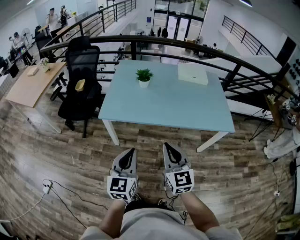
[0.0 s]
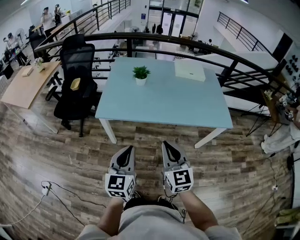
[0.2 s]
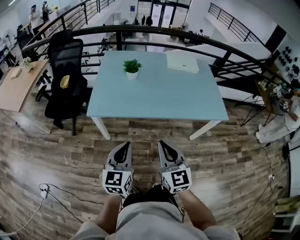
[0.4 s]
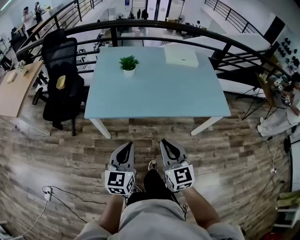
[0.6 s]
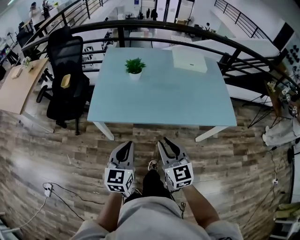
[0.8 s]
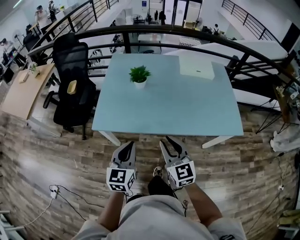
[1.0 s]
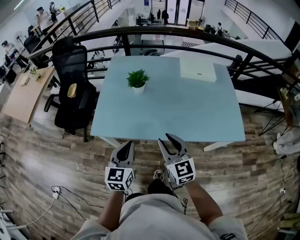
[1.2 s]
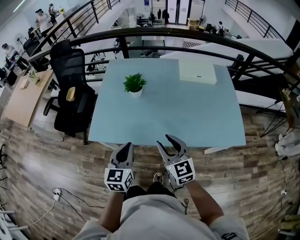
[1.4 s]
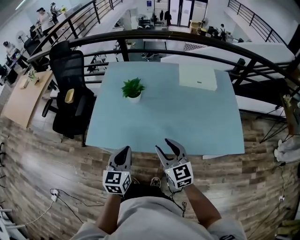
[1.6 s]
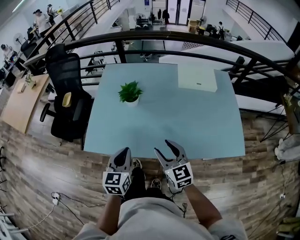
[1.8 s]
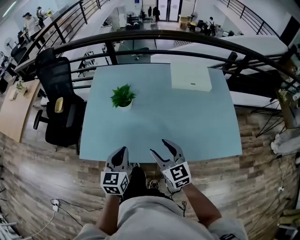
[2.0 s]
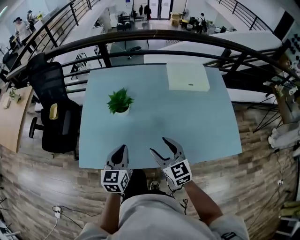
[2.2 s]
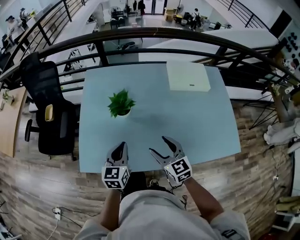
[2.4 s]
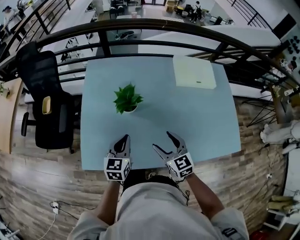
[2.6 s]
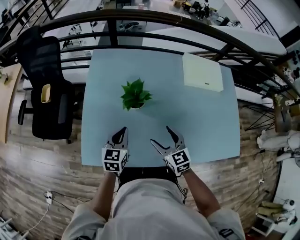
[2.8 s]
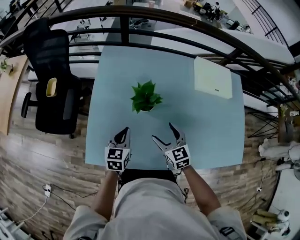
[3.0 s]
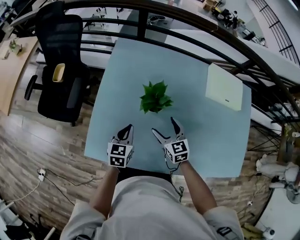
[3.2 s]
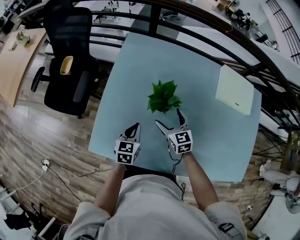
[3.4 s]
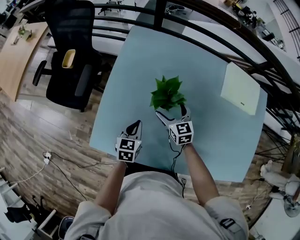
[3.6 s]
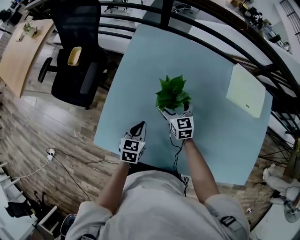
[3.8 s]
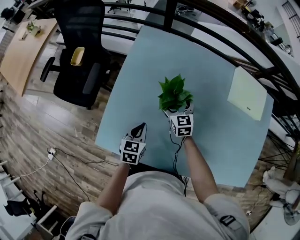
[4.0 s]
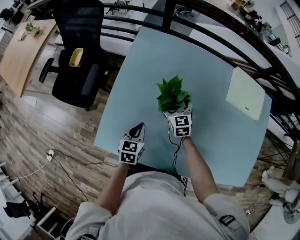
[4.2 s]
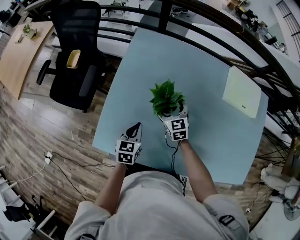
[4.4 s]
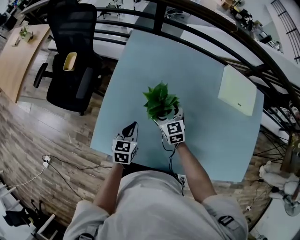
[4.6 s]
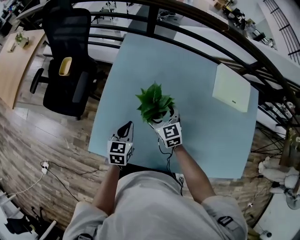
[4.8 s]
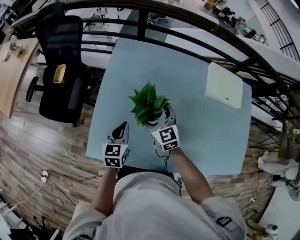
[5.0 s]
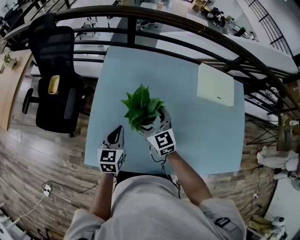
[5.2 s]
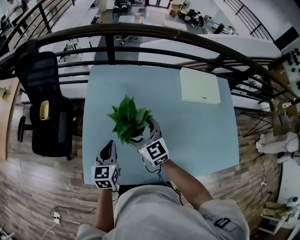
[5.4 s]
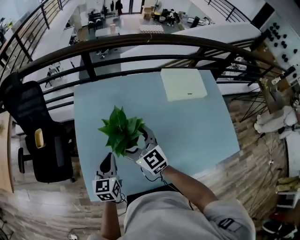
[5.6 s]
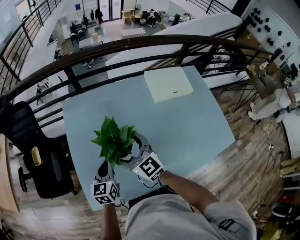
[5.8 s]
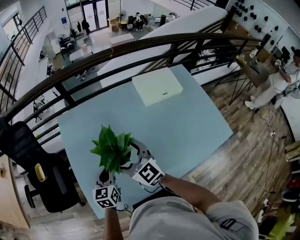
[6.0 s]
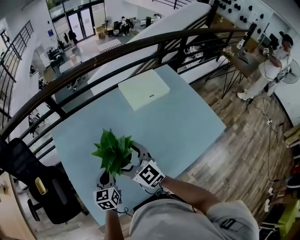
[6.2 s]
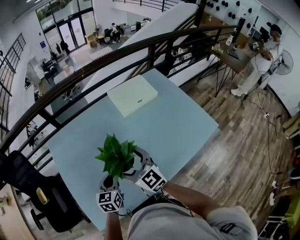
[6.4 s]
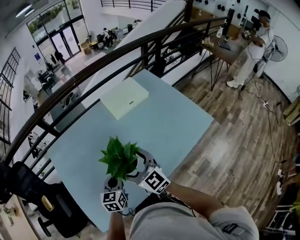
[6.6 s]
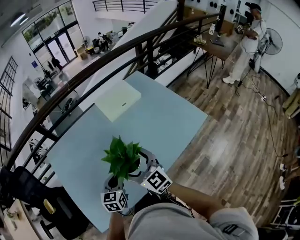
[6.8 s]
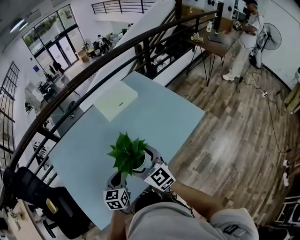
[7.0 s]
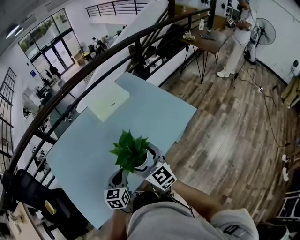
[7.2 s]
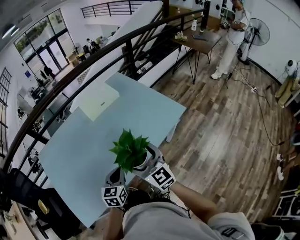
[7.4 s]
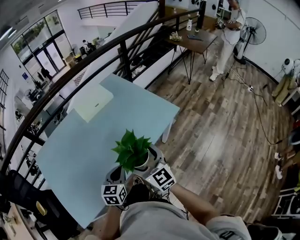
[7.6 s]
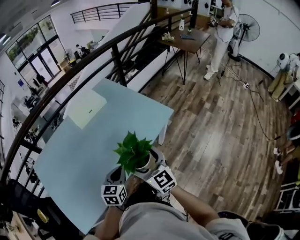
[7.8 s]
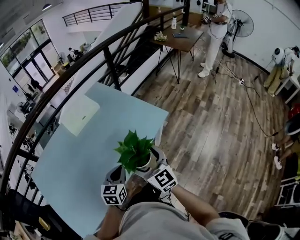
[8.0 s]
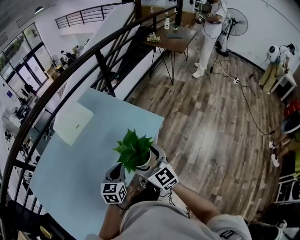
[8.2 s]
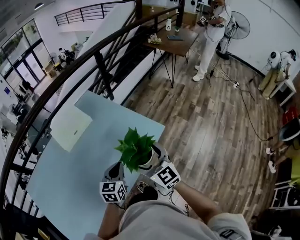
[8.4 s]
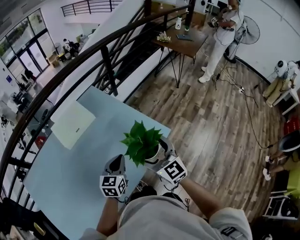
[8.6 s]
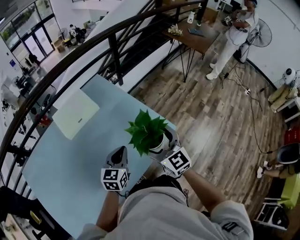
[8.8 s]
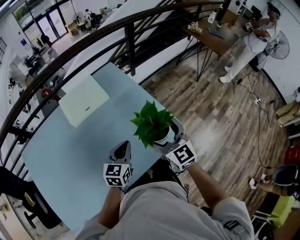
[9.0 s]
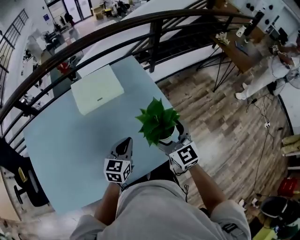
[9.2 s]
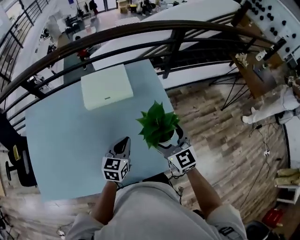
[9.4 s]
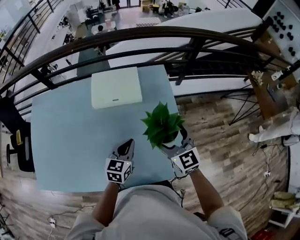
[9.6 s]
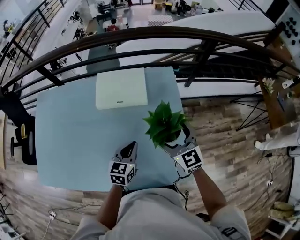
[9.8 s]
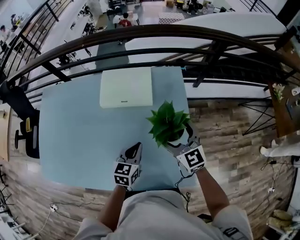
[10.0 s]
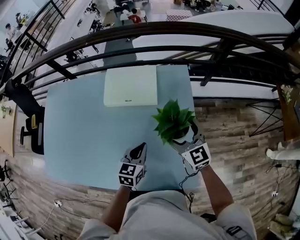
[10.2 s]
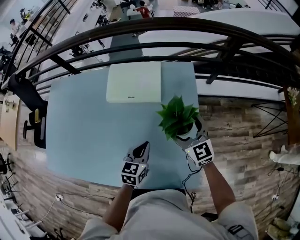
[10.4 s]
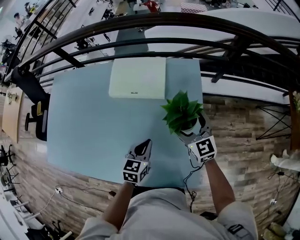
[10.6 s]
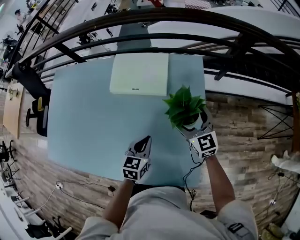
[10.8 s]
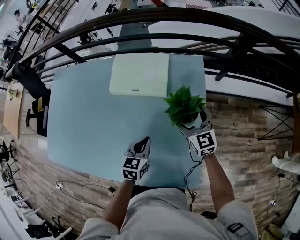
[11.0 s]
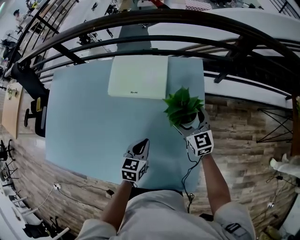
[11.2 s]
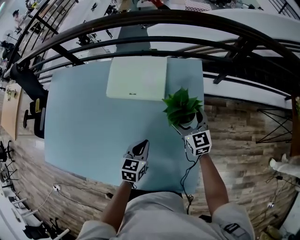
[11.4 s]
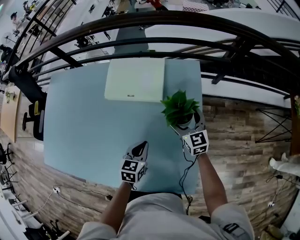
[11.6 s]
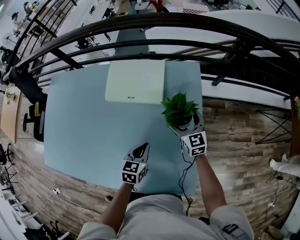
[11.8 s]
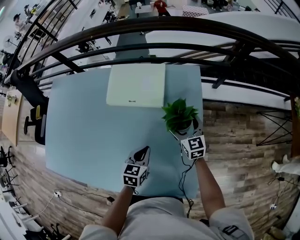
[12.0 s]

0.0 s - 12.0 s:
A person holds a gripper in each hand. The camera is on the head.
0.0 s - 1.6 s: The two grippers go approximately 30 cm forward.
1.6 s - 3.0 s: The grippers both shift forward and downward by approximately 30 cm. The right gripper opens.
3.0 s - 4.4 s: The right gripper travels forward, downward and to the left by about 20 cm; the left gripper heads downward, covering about 5 cm.
4.4 s - 6.0 s: The left gripper goes about 15 cm upward and to the right, and rotates some 20 degrees. Meanwhile the right gripper goes some 25 cm upward, and rotates some 30 degrees.
6.0 s - 7.6 s: Both grippers are carried roughly 40 cm. The left gripper swivels some 40 degrees, while the right gripper rotates about 40 degrees.
7.6 s - 9.0 s: The right gripper shifts about 35 cm forward and to the right, while the left gripper goes roughly 30 cm forward.
9.0 s - 10.4 s: The right gripper moves some 30 cm, and changes its angle by some 40 degrees, while the left gripper moves about 15 cm, and rotates approximately 40 degrees.
10.4 s - 12.0 s: The right gripper travels downward and forward by some 15 cm. Meanwhile the left gripper is displaced downward by some 5 cm.

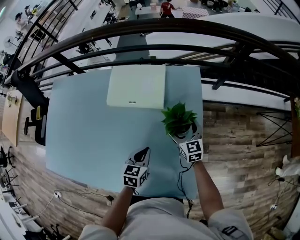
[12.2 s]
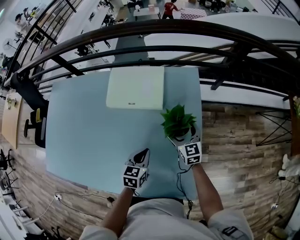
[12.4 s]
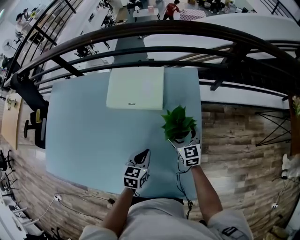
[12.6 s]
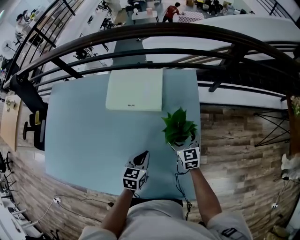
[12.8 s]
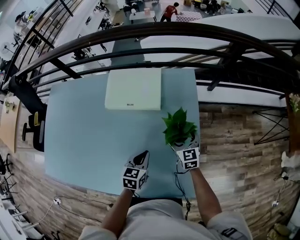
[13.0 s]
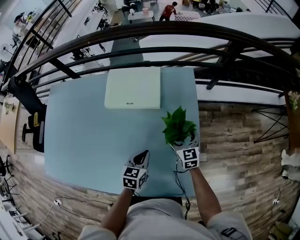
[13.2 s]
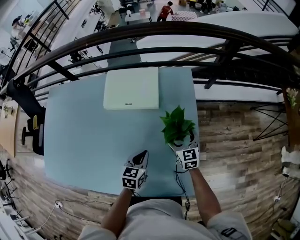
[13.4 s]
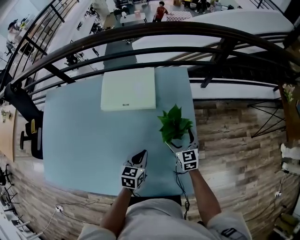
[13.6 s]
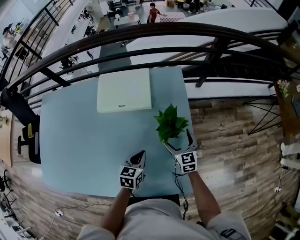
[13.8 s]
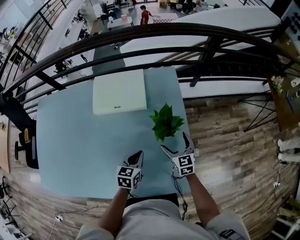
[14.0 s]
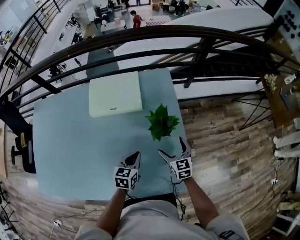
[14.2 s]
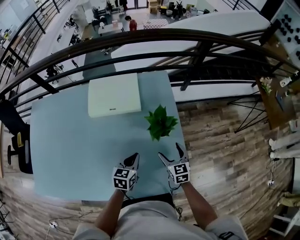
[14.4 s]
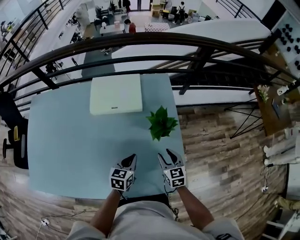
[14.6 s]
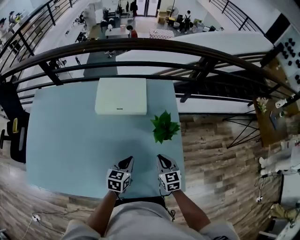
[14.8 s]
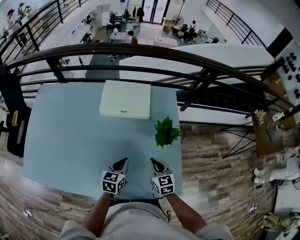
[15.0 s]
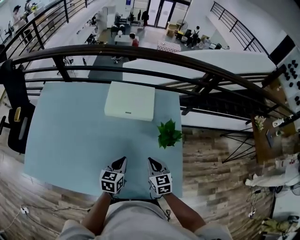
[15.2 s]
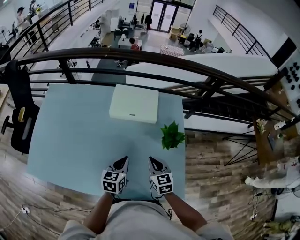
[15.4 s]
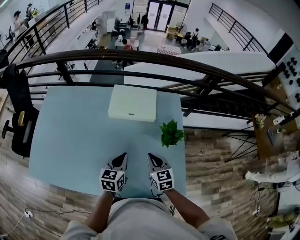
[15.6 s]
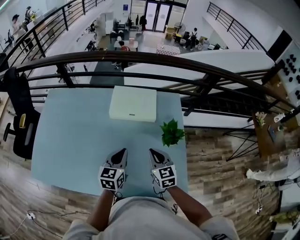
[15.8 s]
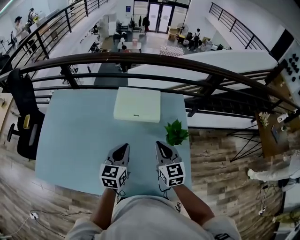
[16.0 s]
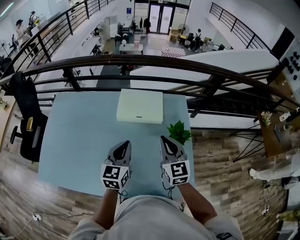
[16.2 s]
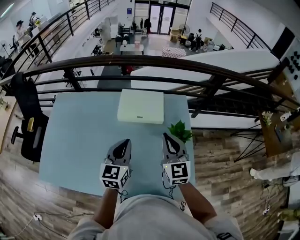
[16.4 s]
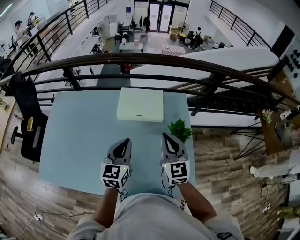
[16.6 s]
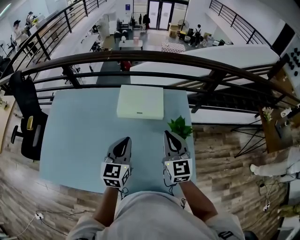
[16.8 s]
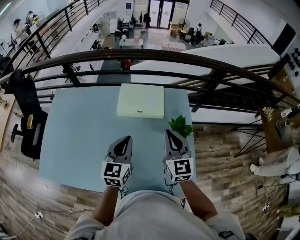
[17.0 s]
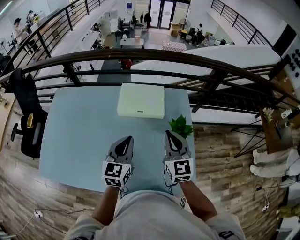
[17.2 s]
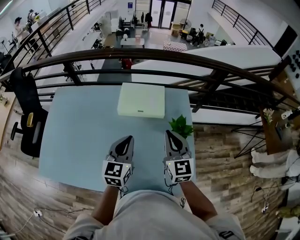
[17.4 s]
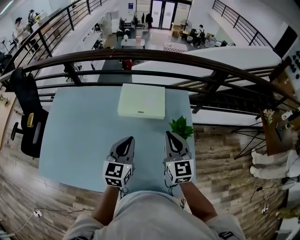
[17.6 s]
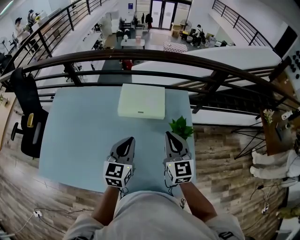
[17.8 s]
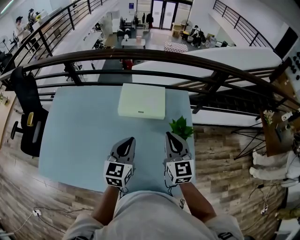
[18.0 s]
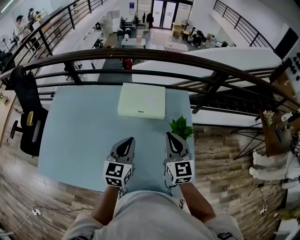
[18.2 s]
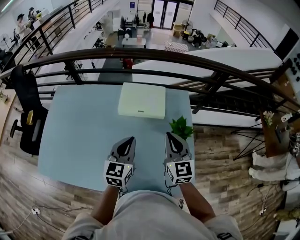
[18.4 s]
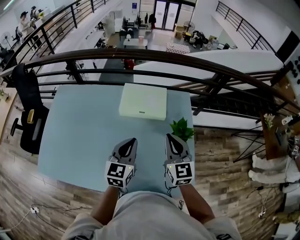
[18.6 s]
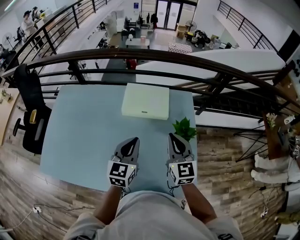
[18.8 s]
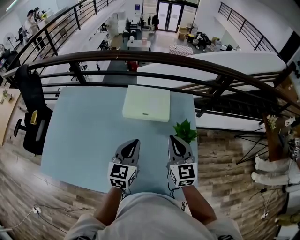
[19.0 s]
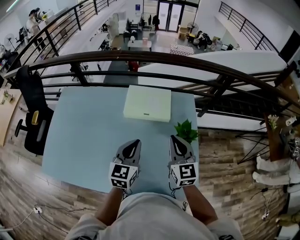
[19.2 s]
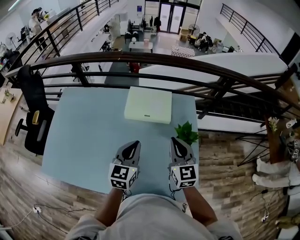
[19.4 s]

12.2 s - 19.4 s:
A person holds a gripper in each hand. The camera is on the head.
12.2 s - 13.6 s: The right gripper travels backward by roughly 5 cm.
13.6 s - 15.0 s: The right gripper heads backward and to the left, covering approximately 15 cm, and closes its fingers. Meanwhile the left gripper goes approximately 5 cm to the left.
15.0 s - 16.6 s: Both grippers travel together upward, about 20 cm. The left gripper swivels roughly 30 degrees. Meanwhile the right gripper swivels approximately 30 degrees.
16.6 s - 18.0 s: There are only small adjustments of the grippers.
18.0 s - 19.4 s: Both grippers stay about where they are.

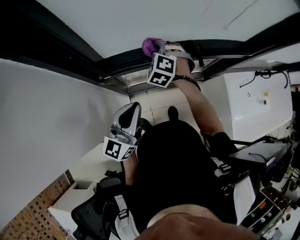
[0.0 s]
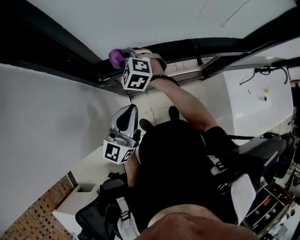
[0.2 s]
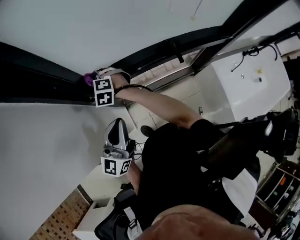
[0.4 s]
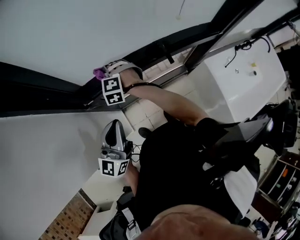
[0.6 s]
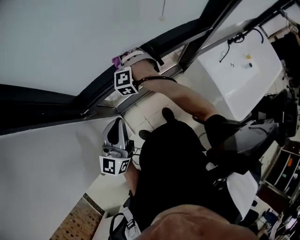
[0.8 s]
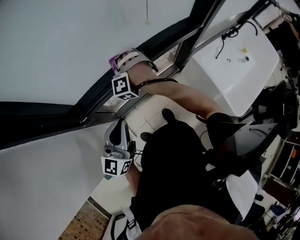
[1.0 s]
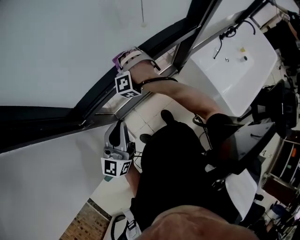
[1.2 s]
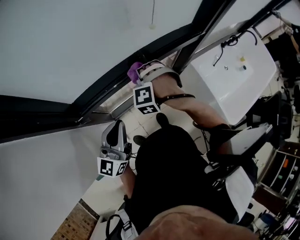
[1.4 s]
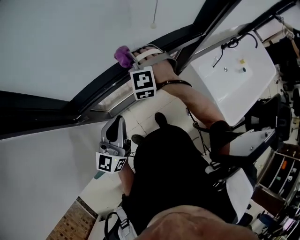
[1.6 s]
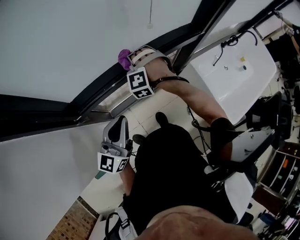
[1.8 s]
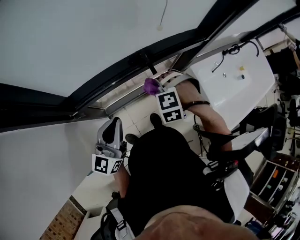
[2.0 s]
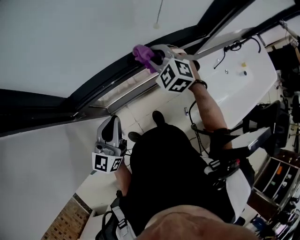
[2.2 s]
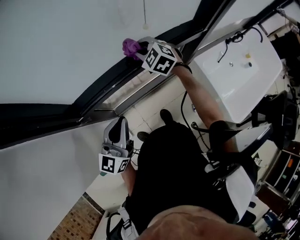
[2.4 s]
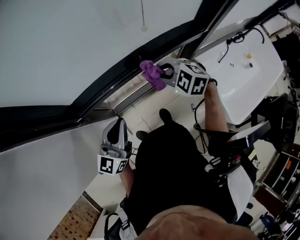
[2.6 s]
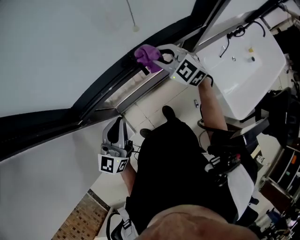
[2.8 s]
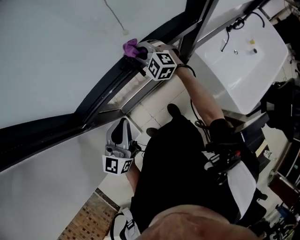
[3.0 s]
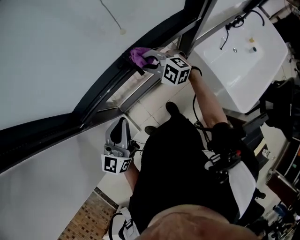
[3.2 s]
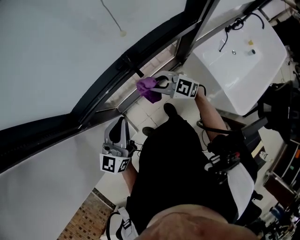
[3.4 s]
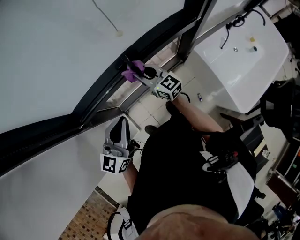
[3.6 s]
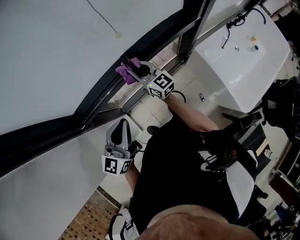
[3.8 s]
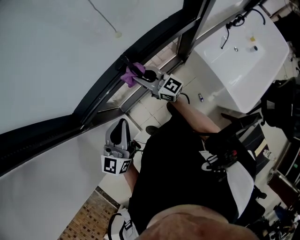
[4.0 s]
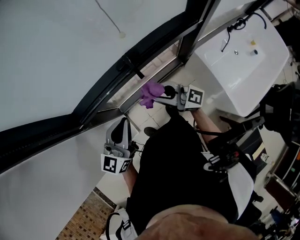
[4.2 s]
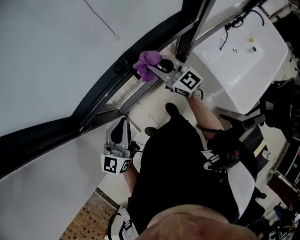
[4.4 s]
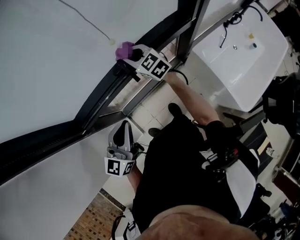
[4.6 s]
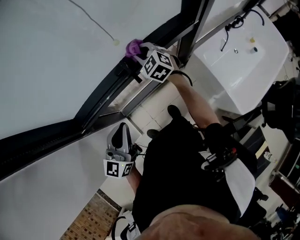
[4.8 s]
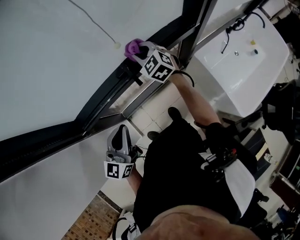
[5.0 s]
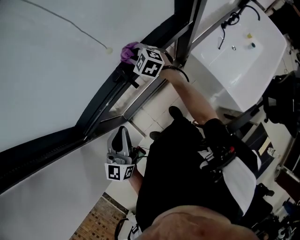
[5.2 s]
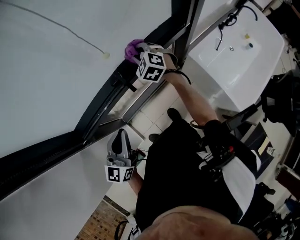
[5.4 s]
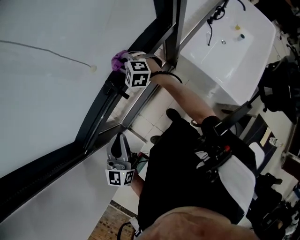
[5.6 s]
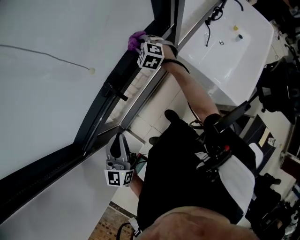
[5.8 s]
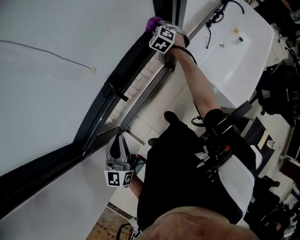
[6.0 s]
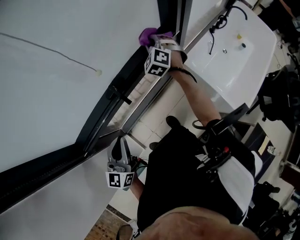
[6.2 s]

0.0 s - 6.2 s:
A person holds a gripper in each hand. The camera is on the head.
0.0 s - 1.6 s: The left gripper ends up approximately 10 cm from where it was. Meanwhile the right gripper swivels about 20 degrees.
1.6 s - 3.2 s: The right gripper goes up and down, some 10 cm each way, reversing 2 times, and turns by approximately 50 degrees, while the left gripper shifts by roughly 5 cm.
3.2 s - 4.6 s: The right gripper goes forward and backward, about 20 cm each way, reversing 3 times, and turns by some 40 degrees.
4.6 s - 6.2 s: The right gripper is displaced to the right and forward by approximately 20 cm, and rotates approximately 50 degrees.
